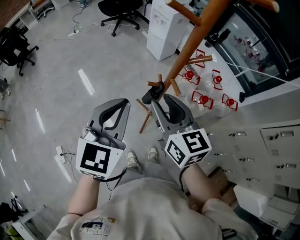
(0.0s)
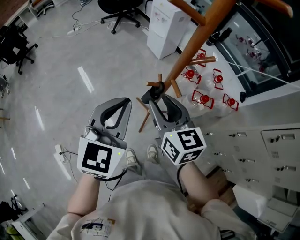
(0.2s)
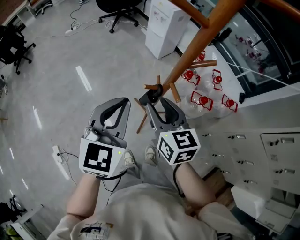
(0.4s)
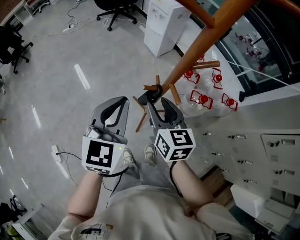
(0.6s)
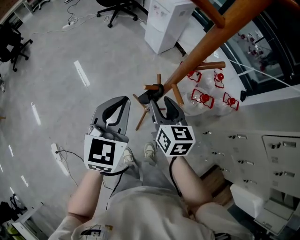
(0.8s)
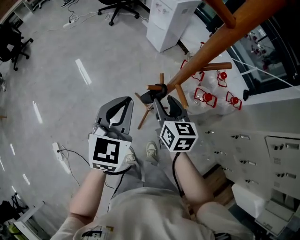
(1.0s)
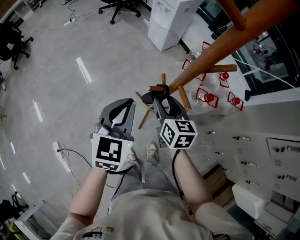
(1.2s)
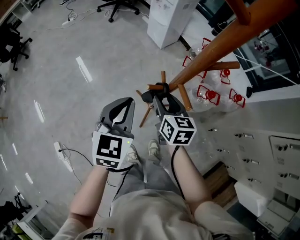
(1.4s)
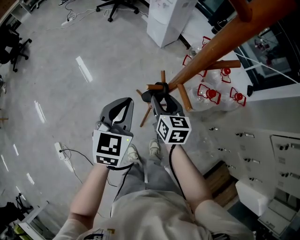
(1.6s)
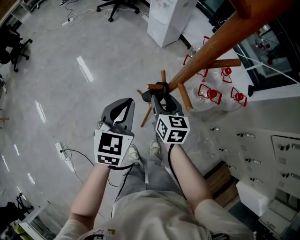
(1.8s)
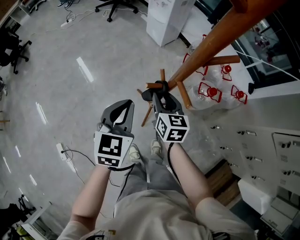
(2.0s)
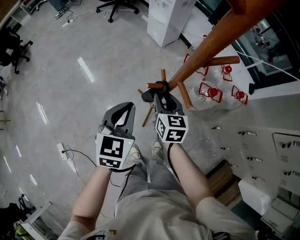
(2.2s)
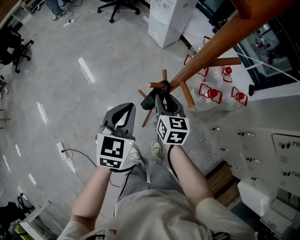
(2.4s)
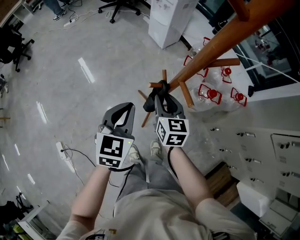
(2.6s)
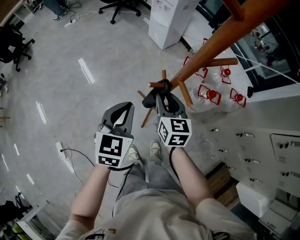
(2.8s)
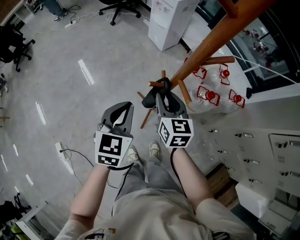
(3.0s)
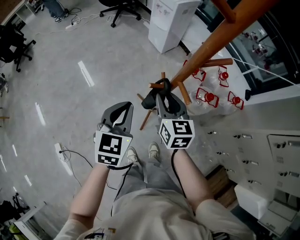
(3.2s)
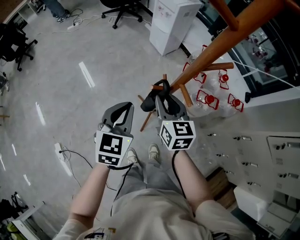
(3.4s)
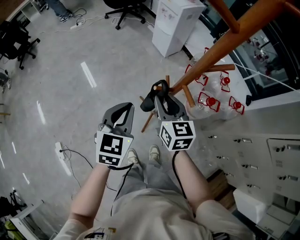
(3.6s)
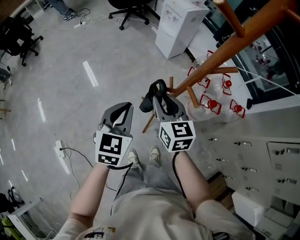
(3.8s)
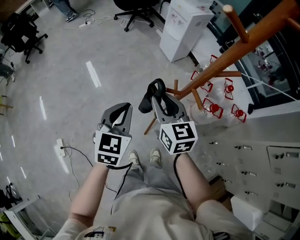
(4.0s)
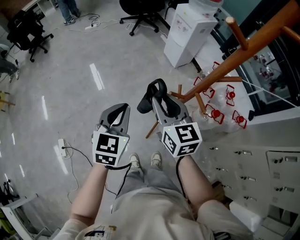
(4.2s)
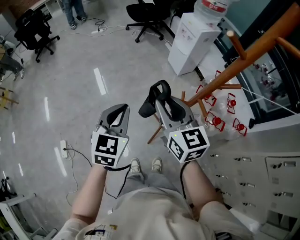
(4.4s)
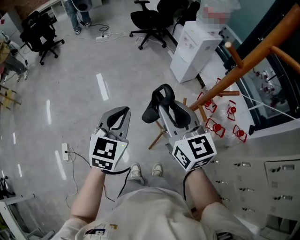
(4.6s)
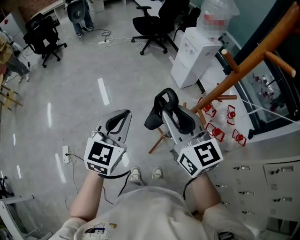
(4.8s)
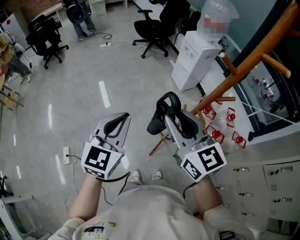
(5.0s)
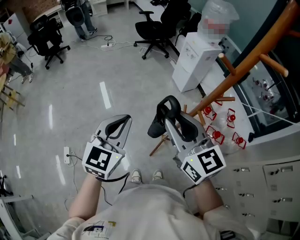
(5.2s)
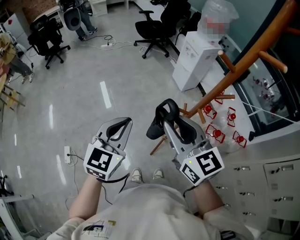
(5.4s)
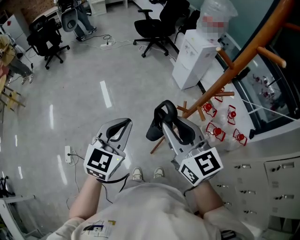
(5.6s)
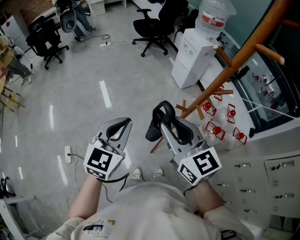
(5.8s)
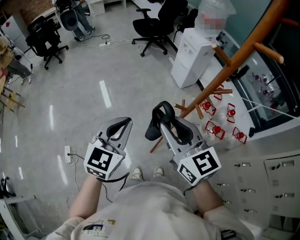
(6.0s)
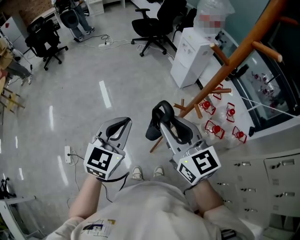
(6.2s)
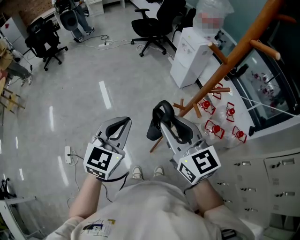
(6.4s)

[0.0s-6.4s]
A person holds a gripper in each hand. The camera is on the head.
0.0s to 1.6s: Both grippers move downward and forward, some 25 cm. The right gripper changes its angle by some 20 degrees.
1.6s to 3.2s: The right gripper travels upward by approximately 10 cm.
3.2s to 4.8s: Both grippers move upward and to the left, approximately 25 cm. The right gripper rotates about 30 degrees.
4.8s to 6.4s: Both grippers travel together backward, about 5 cm.

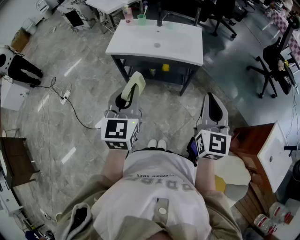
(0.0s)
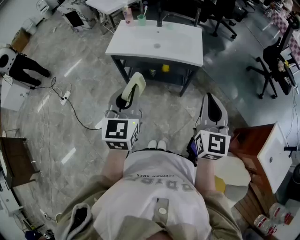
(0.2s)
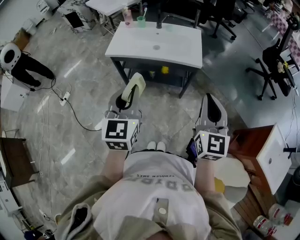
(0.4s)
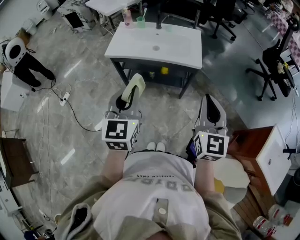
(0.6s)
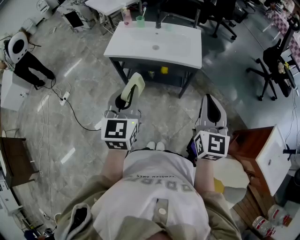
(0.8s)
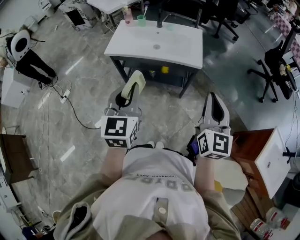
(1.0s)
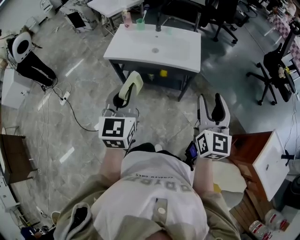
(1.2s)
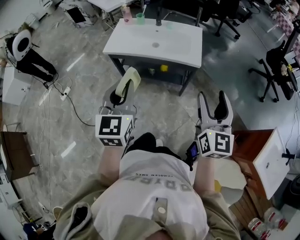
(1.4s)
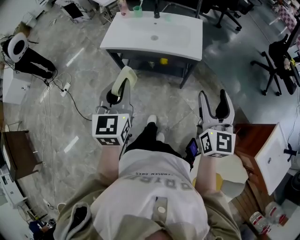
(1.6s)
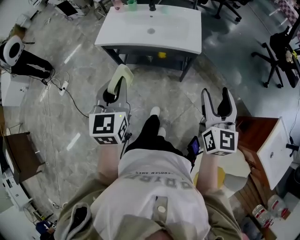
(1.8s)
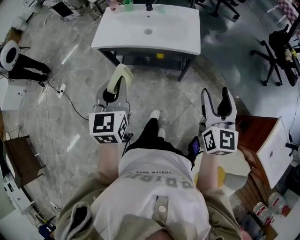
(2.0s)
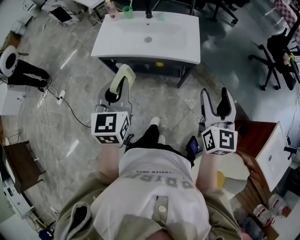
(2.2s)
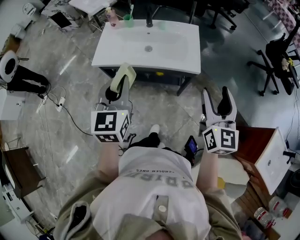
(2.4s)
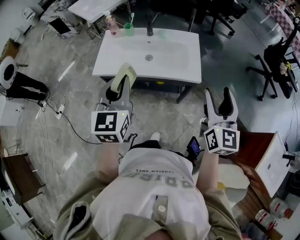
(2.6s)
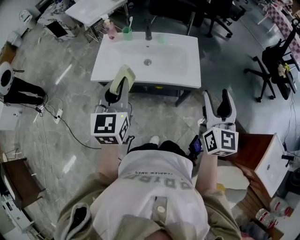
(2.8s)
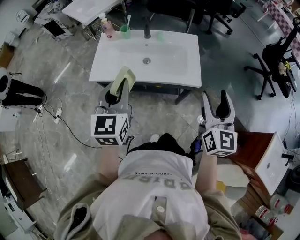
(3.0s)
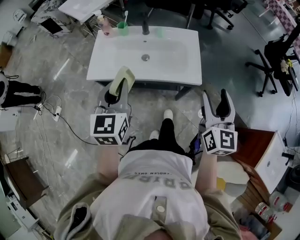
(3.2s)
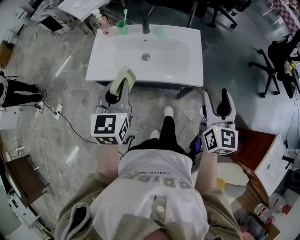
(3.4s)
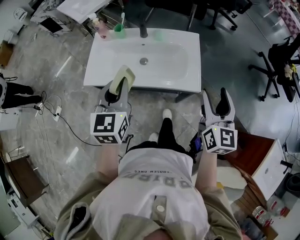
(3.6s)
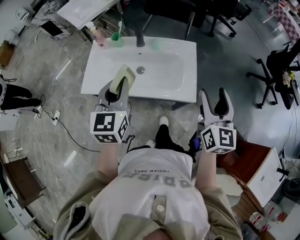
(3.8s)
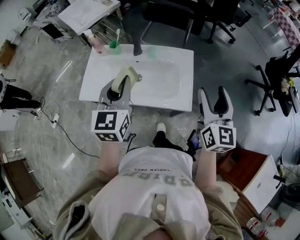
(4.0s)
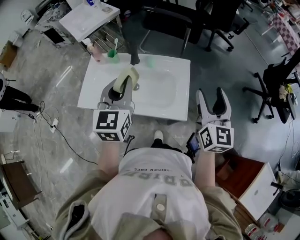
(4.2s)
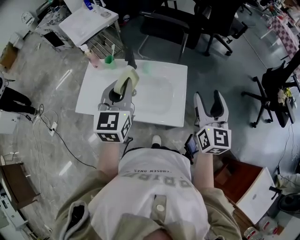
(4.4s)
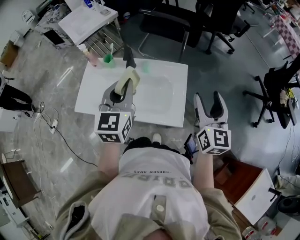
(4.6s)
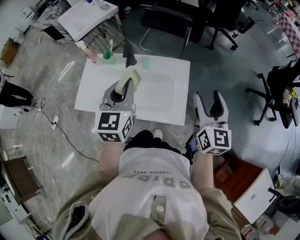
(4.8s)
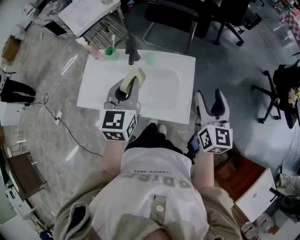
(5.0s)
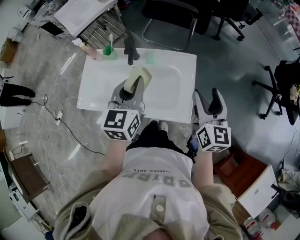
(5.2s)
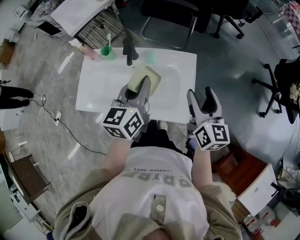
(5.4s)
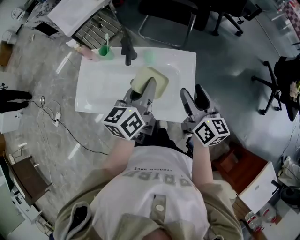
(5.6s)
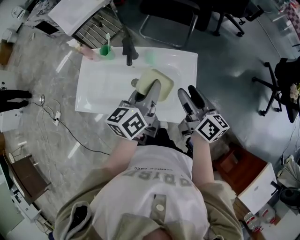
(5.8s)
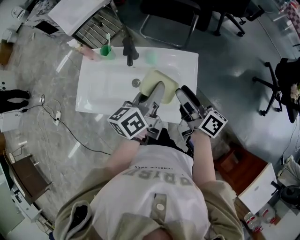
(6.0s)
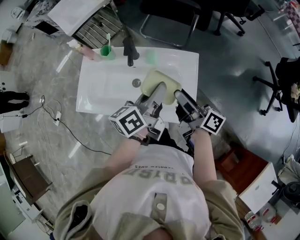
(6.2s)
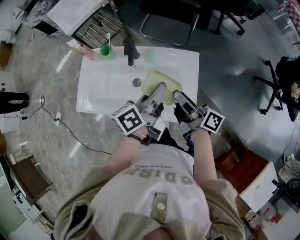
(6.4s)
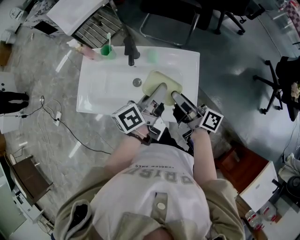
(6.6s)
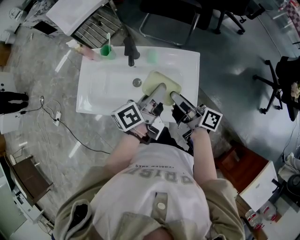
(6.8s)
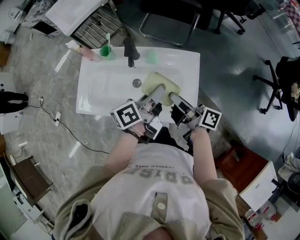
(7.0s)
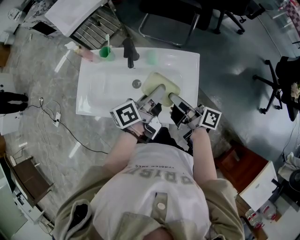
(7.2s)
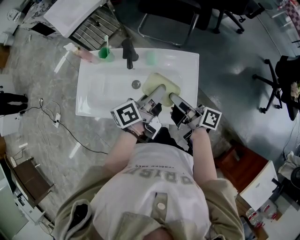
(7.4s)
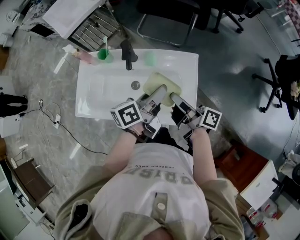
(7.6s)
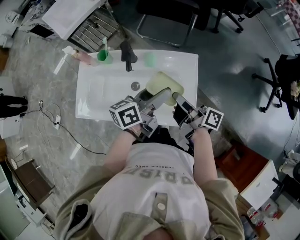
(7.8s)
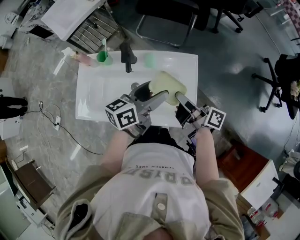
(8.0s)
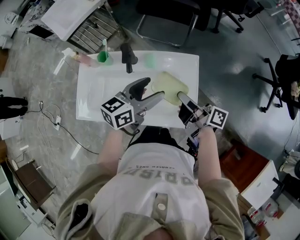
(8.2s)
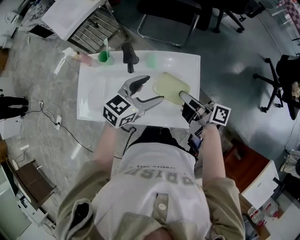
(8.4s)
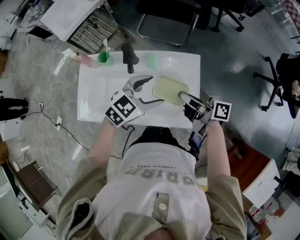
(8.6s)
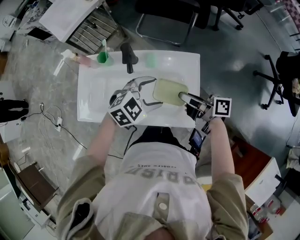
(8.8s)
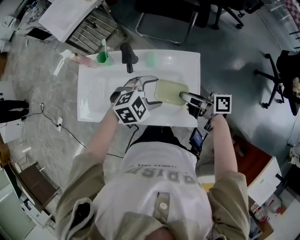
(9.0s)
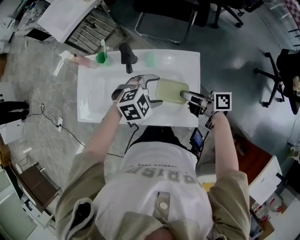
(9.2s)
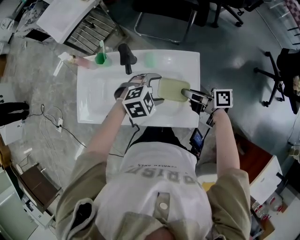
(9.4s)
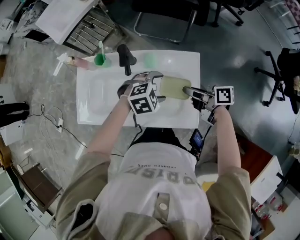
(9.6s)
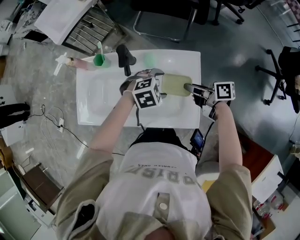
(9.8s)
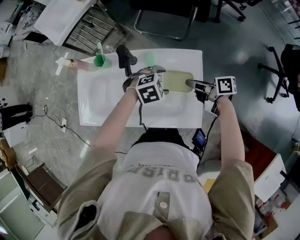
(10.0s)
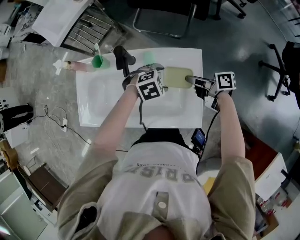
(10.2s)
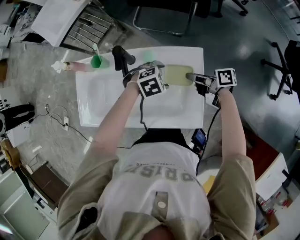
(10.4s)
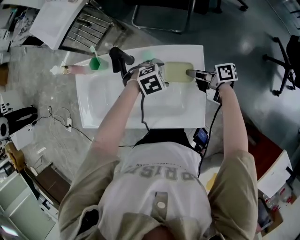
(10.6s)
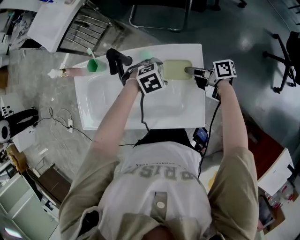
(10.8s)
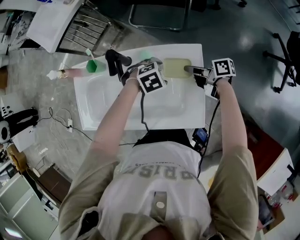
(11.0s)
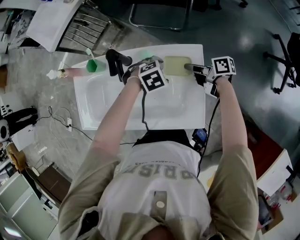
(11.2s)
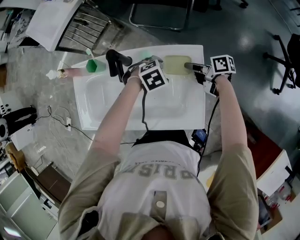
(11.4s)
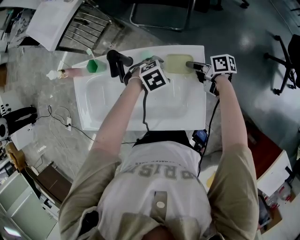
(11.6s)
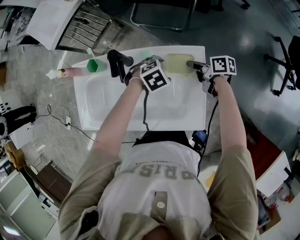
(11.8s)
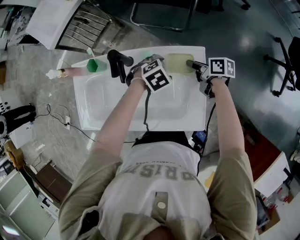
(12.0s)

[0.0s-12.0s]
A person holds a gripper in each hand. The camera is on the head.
0.0s to 1.6s: The right gripper moves about 5 cm, and opens.
1.6s to 3.0s: The two grippers go about 20 cm forward.
3.0s to 4.4s: The right gripper goes some 20 cm forward. Meanwhile the left gripper shifts roughly 25 cm forward and to the right.
4.4s to 6.0s: The left gripper goes roughly 15 cm downward, to the right and forward, and twists approximately 50 degrees counterclockwise, seen from behind. The right gripper travels to the left, downward and forward by about 15 cm, and twists some 60 degrees clockwise, seen from behind.
6.0s to 7.6s: The right gripper changes place by about 5 cm, turns by some 20 degrees, and closes its fingers; the left gripper moves downward, about 5 cm.
7.6s to 9.0s: The left gripper heads downward, covering approximately 5 cm, twists about 80 degrees clockwise, seen from behind, and opens; the right gripper swivels approximately 20 degrees.
9.0s to 10.4s: The grippers both shift downward by approximately 10 cm.
10.4s to 12.0s: The right gripper shifts by roughly 10 cm.

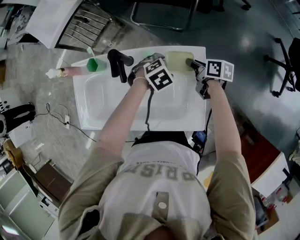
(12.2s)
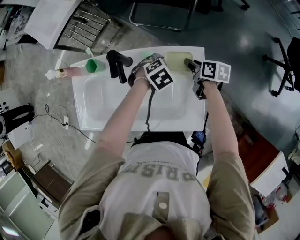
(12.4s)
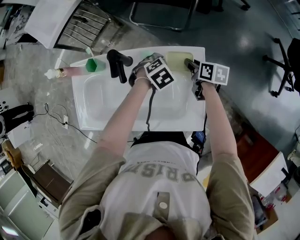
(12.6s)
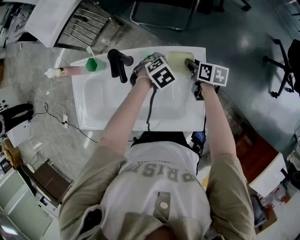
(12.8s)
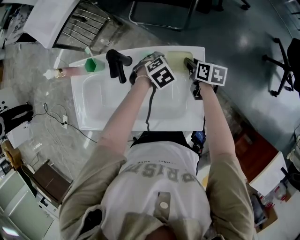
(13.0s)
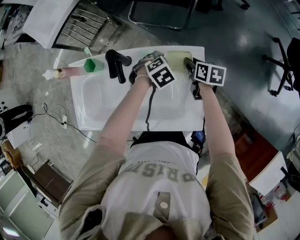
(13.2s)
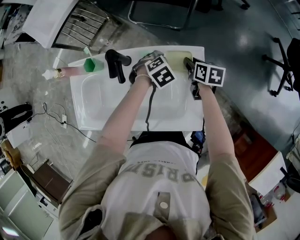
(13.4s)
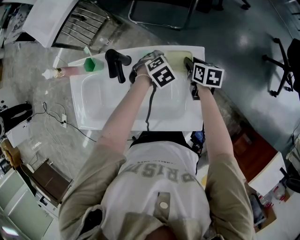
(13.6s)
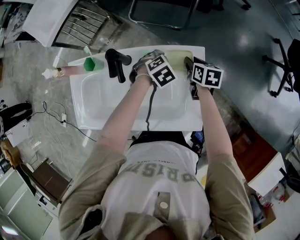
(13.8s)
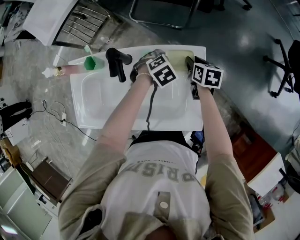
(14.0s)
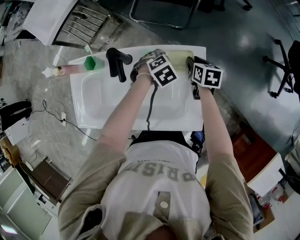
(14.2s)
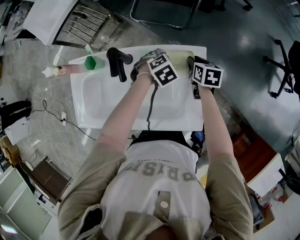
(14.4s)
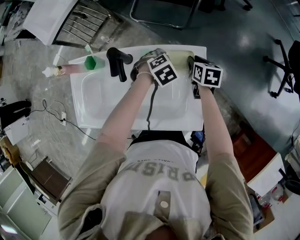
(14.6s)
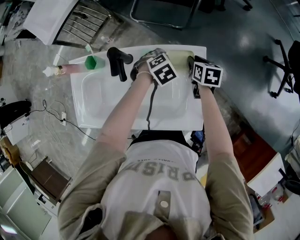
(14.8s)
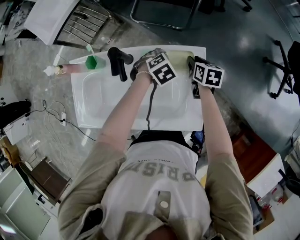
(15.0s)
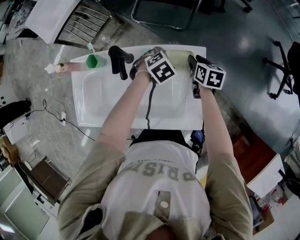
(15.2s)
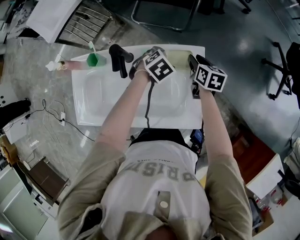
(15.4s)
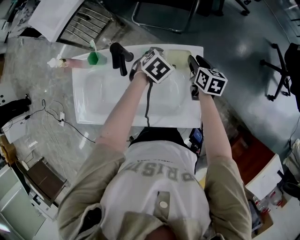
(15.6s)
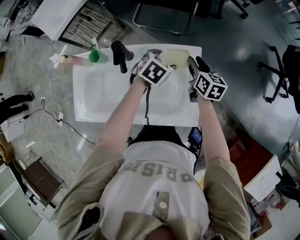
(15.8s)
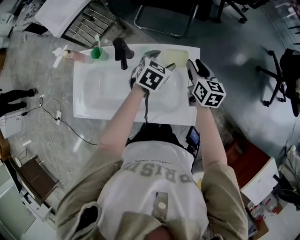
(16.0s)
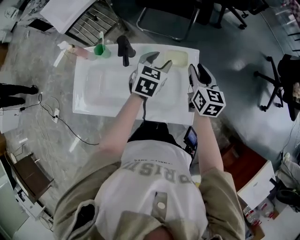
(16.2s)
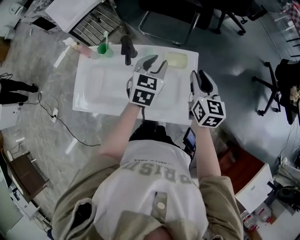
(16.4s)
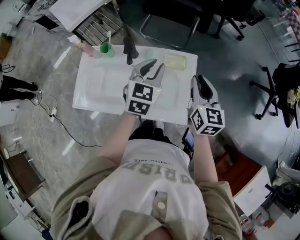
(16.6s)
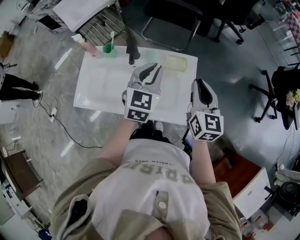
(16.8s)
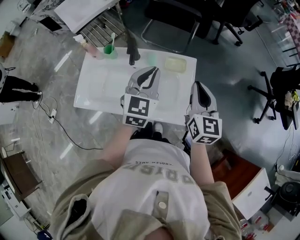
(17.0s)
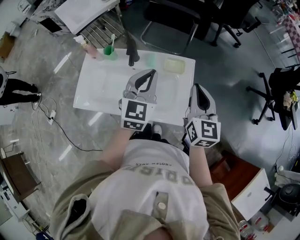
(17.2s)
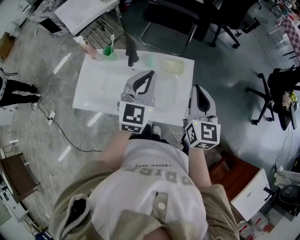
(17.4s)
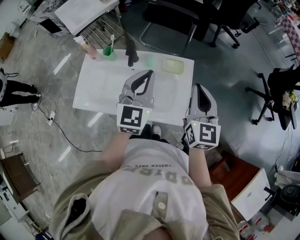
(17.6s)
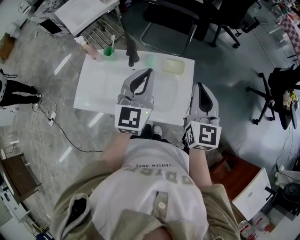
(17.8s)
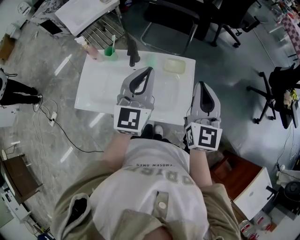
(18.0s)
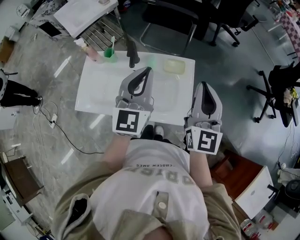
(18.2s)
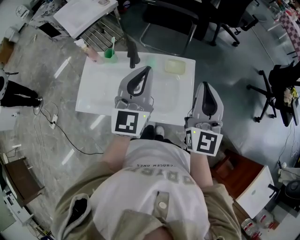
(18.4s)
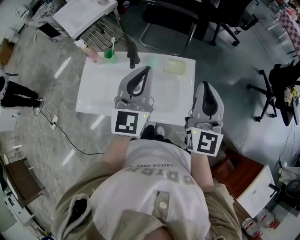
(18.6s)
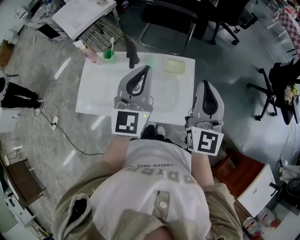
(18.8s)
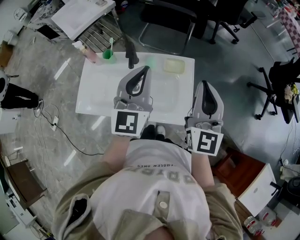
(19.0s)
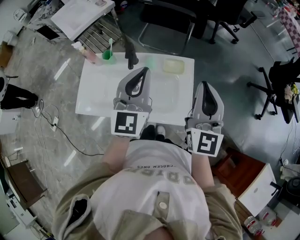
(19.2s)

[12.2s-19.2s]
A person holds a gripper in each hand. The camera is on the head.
12.2s to 13.6s: The right gripper rotates some 20 degrees.
13.6s to 15.0s: The grippers stay close to where they were, moving slightly.
15.0s to 16.4s: The left gripper is displaced upward by about 20 cm, tilts its fingers some 40 degrees upward, and closes its fingers. Meanwhile the right gripper goes approximately 25 cm upward and backward, and angles its fingers upward, by about 30 degrees.
16.4s to 17.8s: The grippers both shift upward and backward by approximately 15 cm. The left gripper rotates roughly 30 degrees, and closes, while the right gripper changes its angle by roughly 20 degrees, and closes up.
17.8s to 19.2s: The right gripper ends up roughly 5 cm from where it was.
